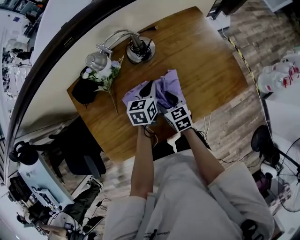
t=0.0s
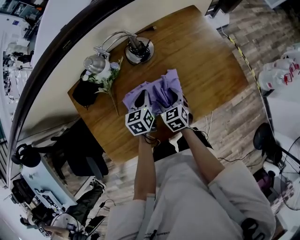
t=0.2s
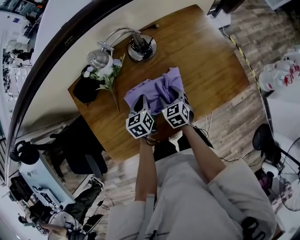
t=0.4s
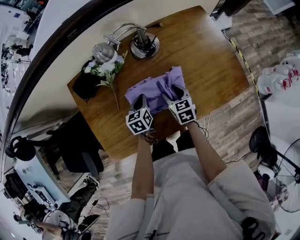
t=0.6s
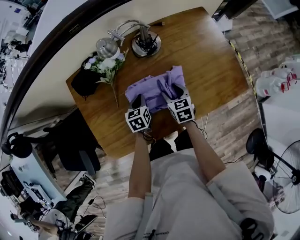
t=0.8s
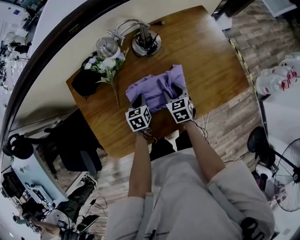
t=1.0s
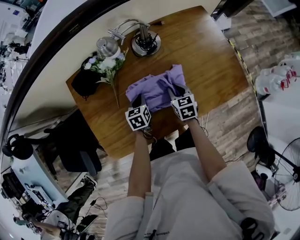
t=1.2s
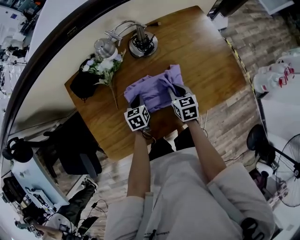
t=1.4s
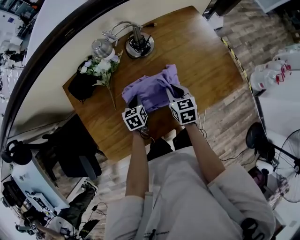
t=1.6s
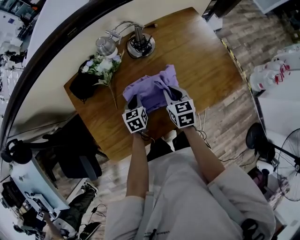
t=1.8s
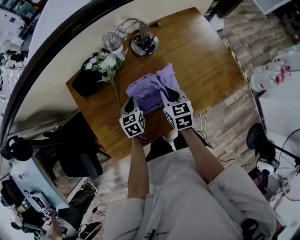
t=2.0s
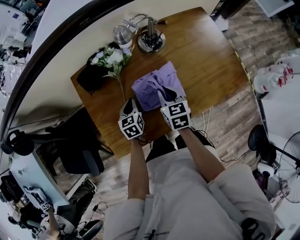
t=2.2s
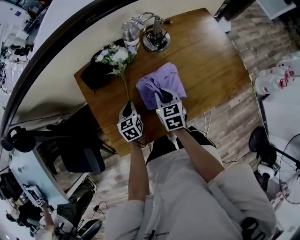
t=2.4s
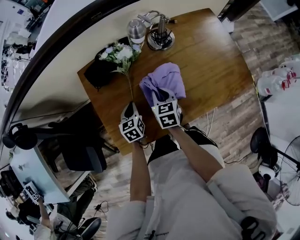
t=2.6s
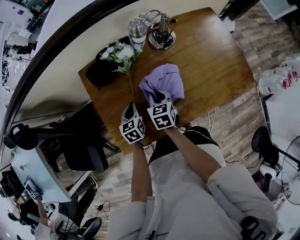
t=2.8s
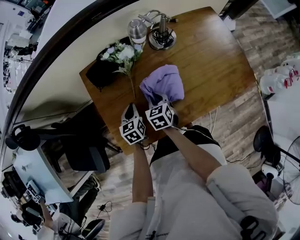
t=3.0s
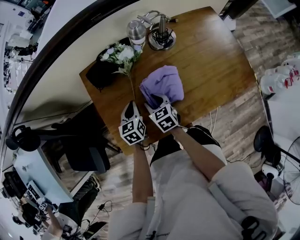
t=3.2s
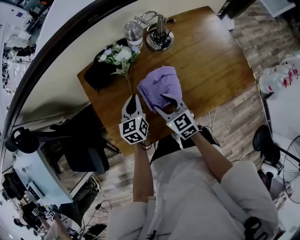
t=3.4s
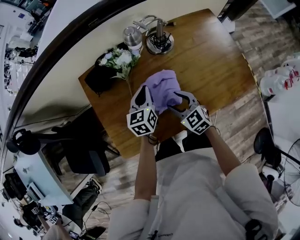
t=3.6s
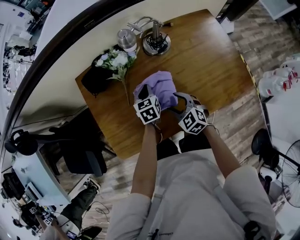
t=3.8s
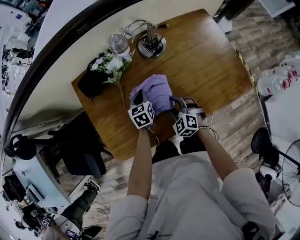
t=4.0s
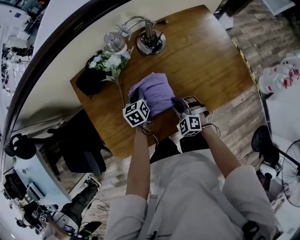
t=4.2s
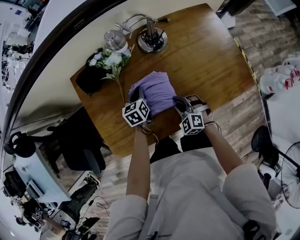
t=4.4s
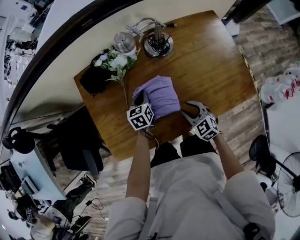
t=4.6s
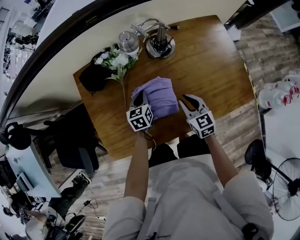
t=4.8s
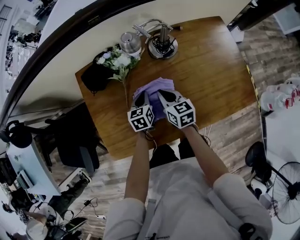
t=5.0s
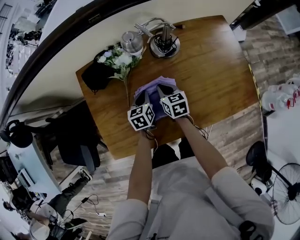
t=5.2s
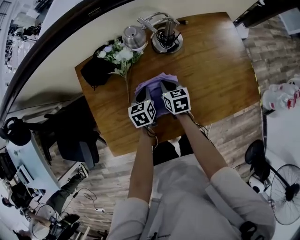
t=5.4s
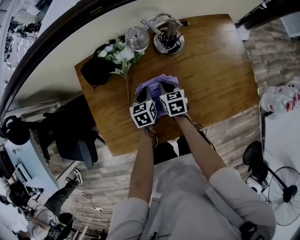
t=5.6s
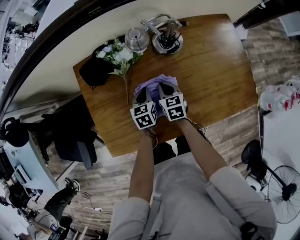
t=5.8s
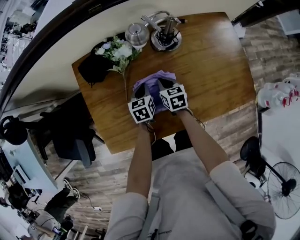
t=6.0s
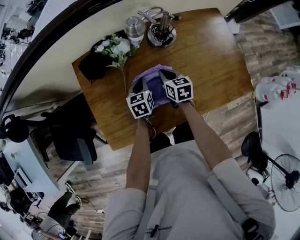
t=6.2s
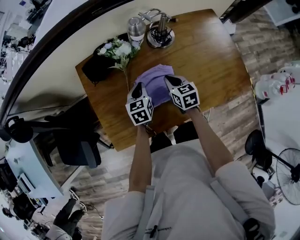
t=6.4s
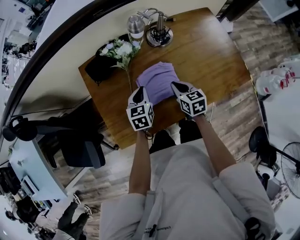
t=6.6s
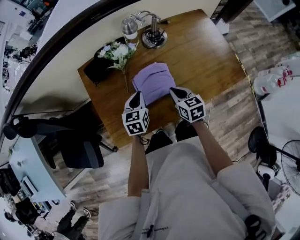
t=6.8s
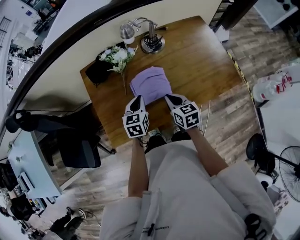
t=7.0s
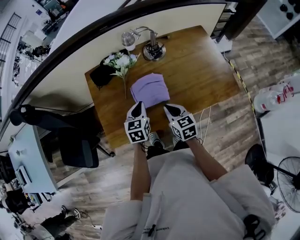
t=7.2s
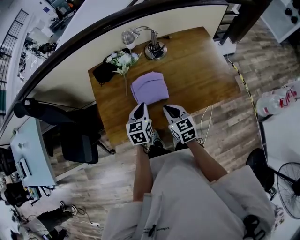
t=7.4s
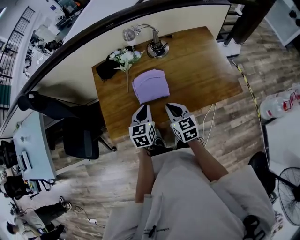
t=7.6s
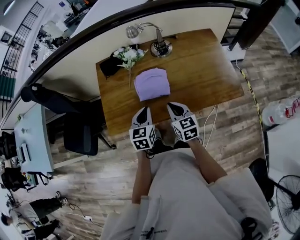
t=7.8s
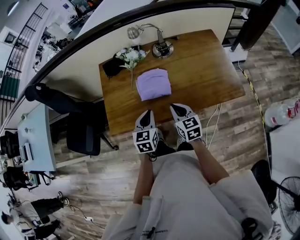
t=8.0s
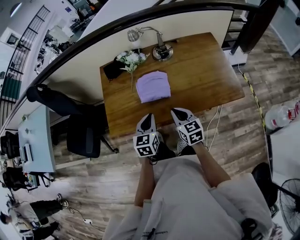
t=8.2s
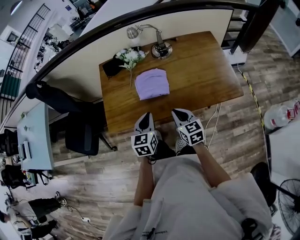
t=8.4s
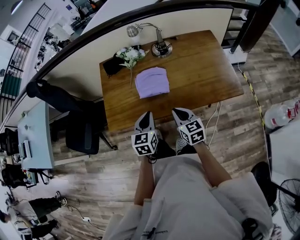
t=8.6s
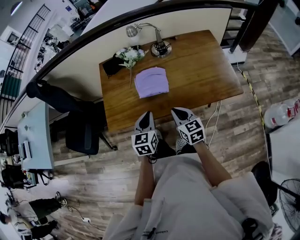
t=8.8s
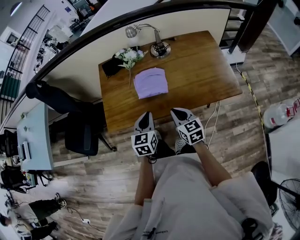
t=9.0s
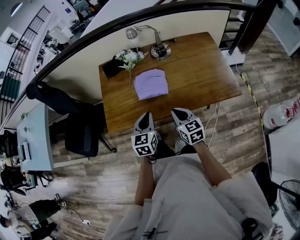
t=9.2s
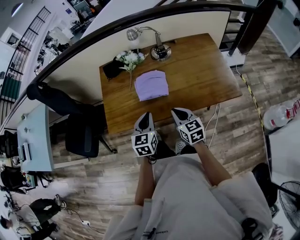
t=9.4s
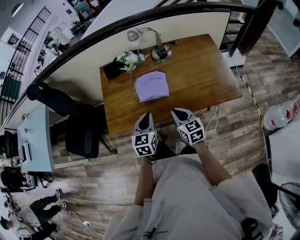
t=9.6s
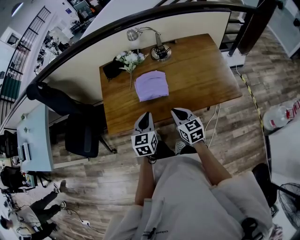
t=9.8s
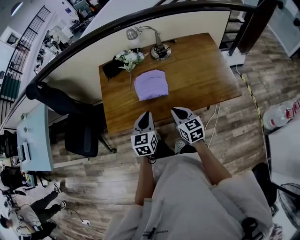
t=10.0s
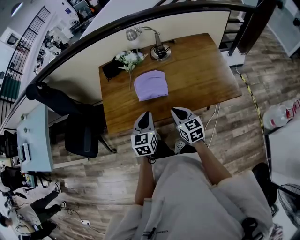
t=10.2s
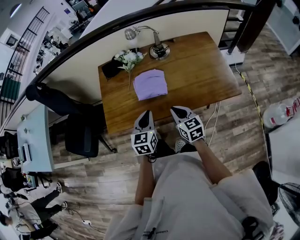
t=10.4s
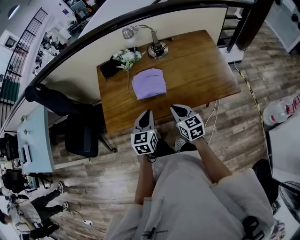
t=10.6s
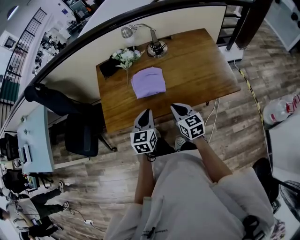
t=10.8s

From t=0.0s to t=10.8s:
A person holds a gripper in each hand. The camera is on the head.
From t=0.0s to t=1.6s: The right gripper closes, while the left gripper shifts roughly 15 cm to the left, downward and backward.
From t=1.6s to t=3.0s: Both grippers move to the left, about 20 cm.
From t=3.0s to t=4.6s: The left gripper heads to the right and forward, covering about 15 cm. The right gripper is displaced to the right and backward by about 20 cm, changes its angle by roughly 30 degrees, and opens, then closes once more.
From t=4.6s to t=6.2s: The right gripper travels forward by about 15 cm, swivels approximately 40 degrees, and closes its fingers.
From t=6.2s to t=7.8s: The two grippers go about 30 cm backward and upward. The right gripper changes its angle by about 20 degrees.
From t=7.8s to t=9.2s: The two grippers go approximately 5 cm backward.
From t=9.2s to t=10.8s: There are only small adjustments of the grippers.

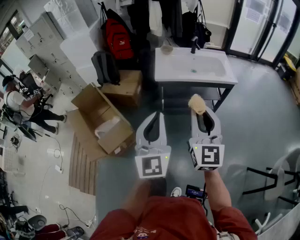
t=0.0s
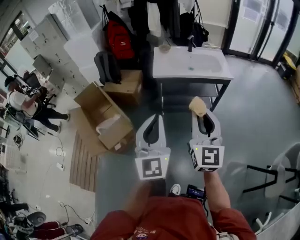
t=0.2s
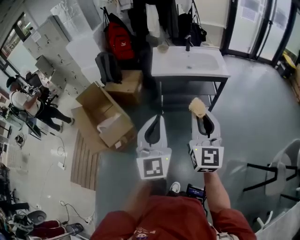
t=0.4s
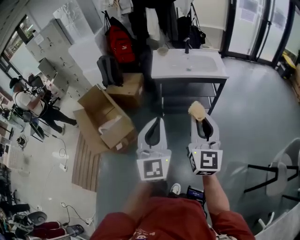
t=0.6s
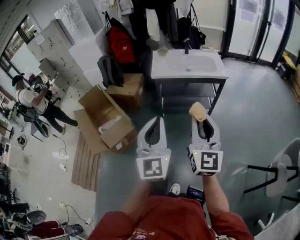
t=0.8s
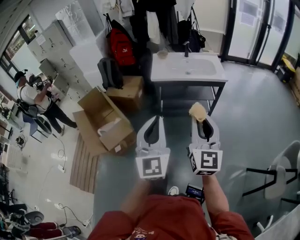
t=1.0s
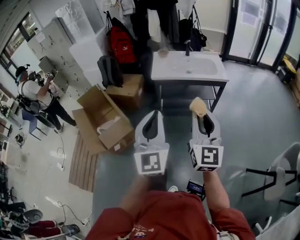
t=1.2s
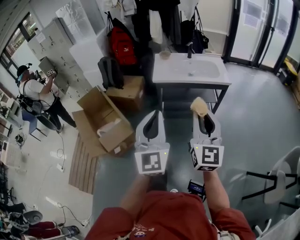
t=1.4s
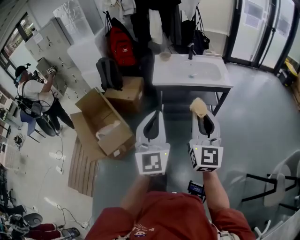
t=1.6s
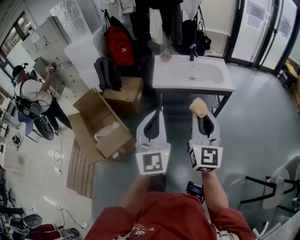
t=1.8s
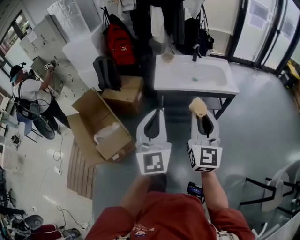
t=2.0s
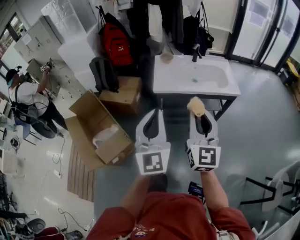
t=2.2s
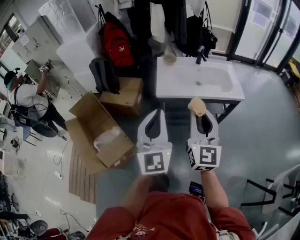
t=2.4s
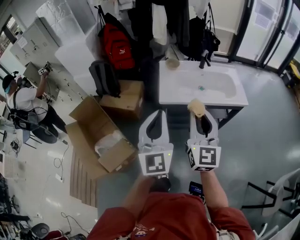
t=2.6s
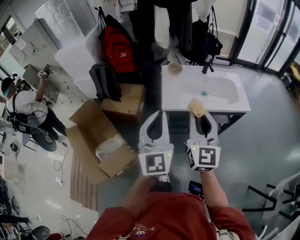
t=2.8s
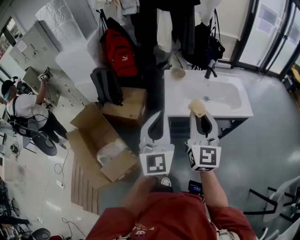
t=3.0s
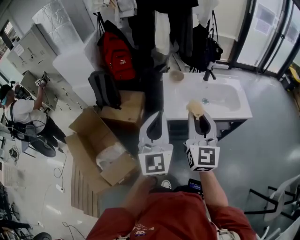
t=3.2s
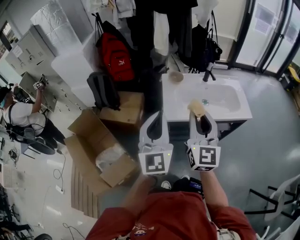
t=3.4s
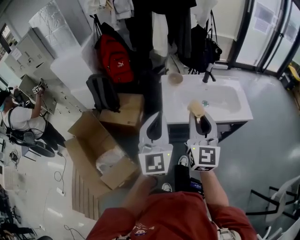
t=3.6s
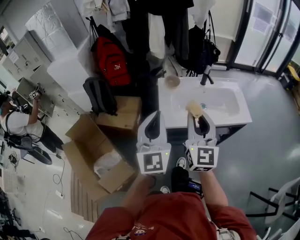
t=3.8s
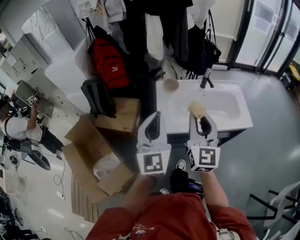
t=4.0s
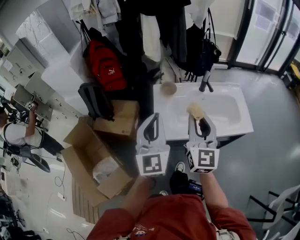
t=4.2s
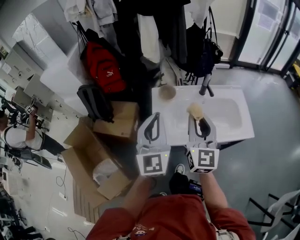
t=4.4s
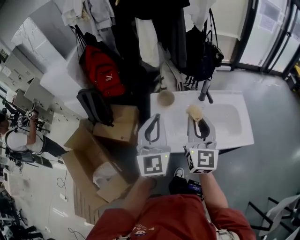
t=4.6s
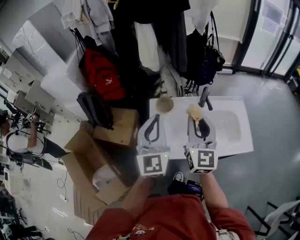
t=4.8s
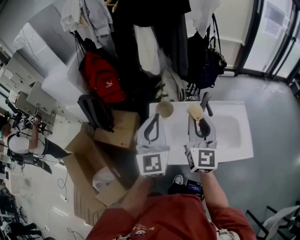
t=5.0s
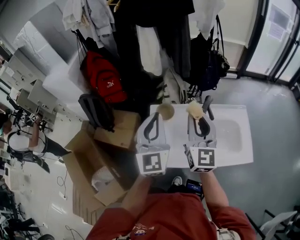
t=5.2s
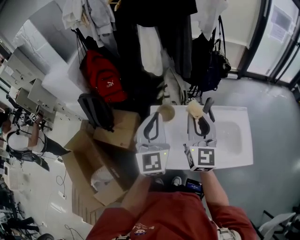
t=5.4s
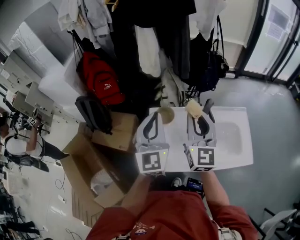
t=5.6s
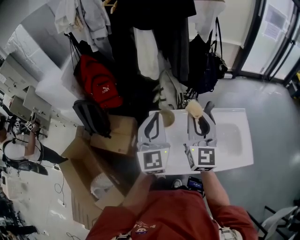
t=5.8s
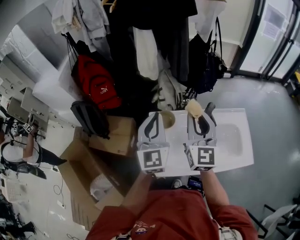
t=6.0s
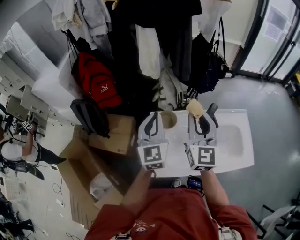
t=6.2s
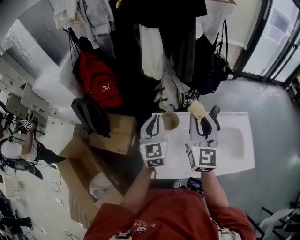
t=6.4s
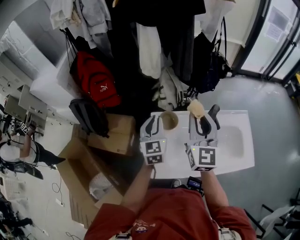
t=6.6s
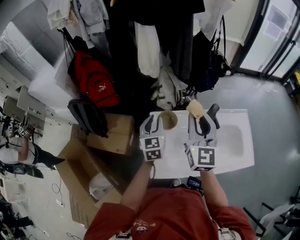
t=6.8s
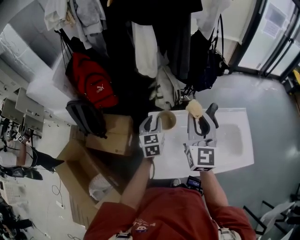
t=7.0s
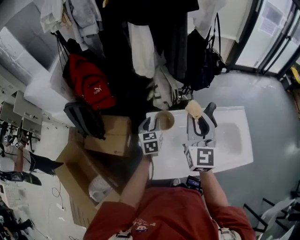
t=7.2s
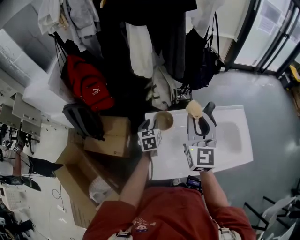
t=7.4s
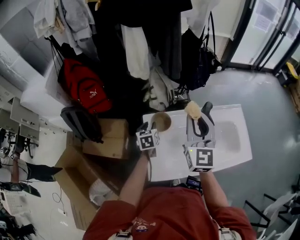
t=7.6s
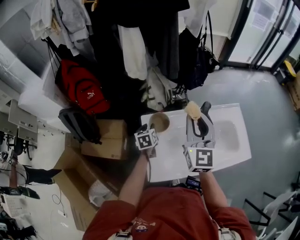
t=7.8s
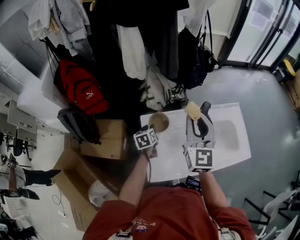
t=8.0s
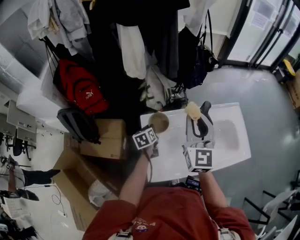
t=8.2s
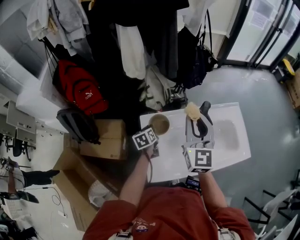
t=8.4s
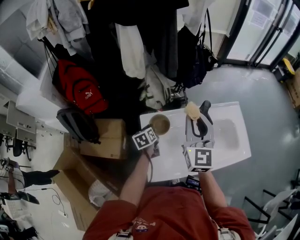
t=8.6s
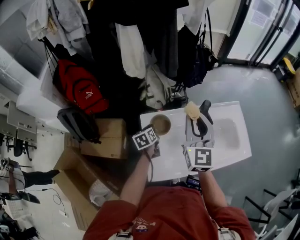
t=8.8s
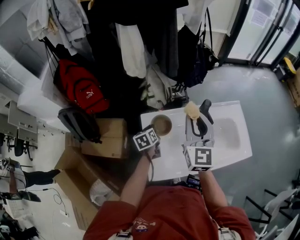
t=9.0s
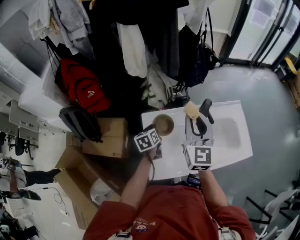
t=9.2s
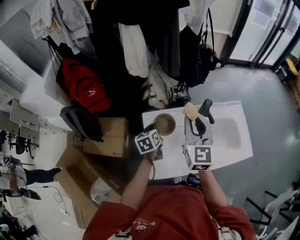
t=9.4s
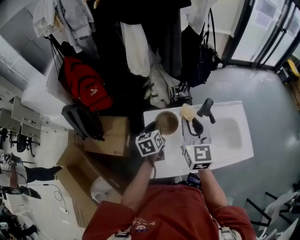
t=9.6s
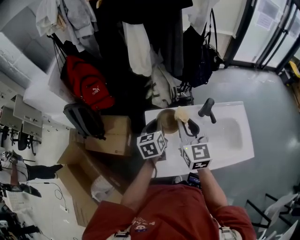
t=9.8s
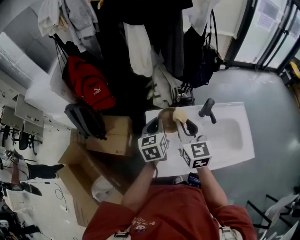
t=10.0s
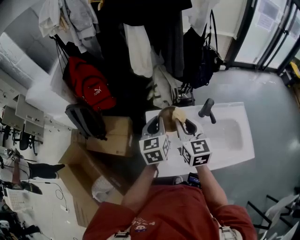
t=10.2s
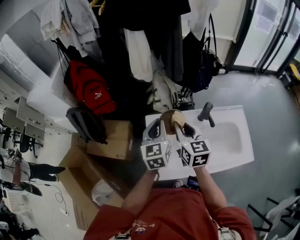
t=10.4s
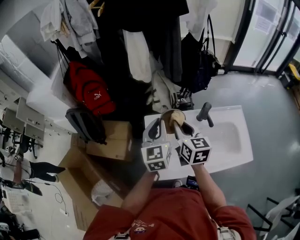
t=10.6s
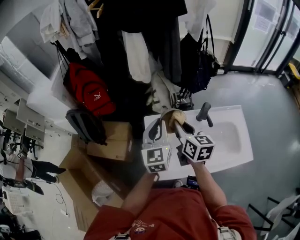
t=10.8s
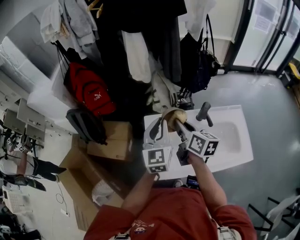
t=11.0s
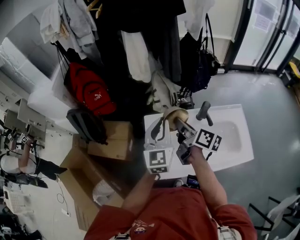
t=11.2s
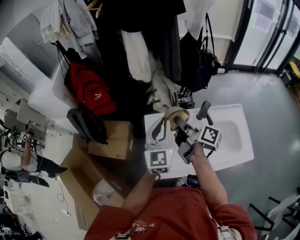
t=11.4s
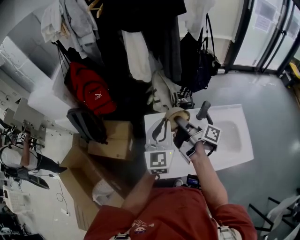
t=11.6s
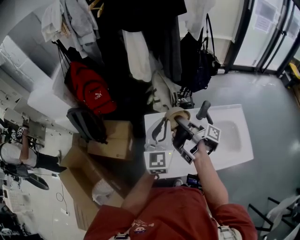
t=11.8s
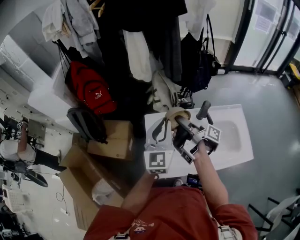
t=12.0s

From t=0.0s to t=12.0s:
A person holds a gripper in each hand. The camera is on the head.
From t=0.0s to t=1.6s: Both grippers move to the right, roughly 5 cm. The right gripper reaches approximately 15 cm backward, then returns, while the left gripper travels backward and back again, approximately 15 cm each way.
From t=1.6s to t=3.0s: Both grippers move forward, some 35 cm.
From t=3.0s to t=4.4s: Both grippers travel together forward, approximately 20 cm.
From t=4.4s to t=6.0s: Both grippers move forward, about 20 cm.
From t=6.0s to t=7.6s: The left gripper shifts about 30 cm downward, tilts its fingers about 40 degrees downward, and opens up.
From t=7.6s to t=9.0s: The left gripper closes its fingers.
From t=9.0s to t=10.4s: The left gripper travels upward by about 20 cm, and swivels some 40 degrees, while the right gripper goes about 5 cm downward, and turns by some 30 degrees.
From t=10.4s to t=12.0s: The right gripper rolls clockwise, seen from behind, by approximately 90 degrees. The left gripper goes roughly 5 cm upward, and swivels approximately 20 degrees.

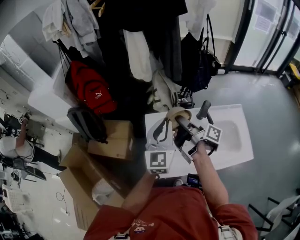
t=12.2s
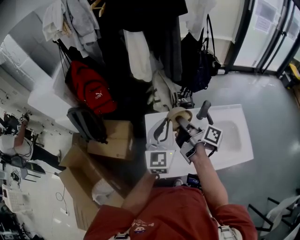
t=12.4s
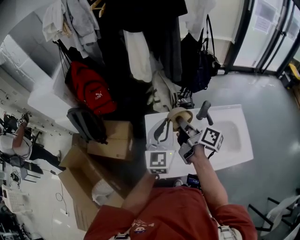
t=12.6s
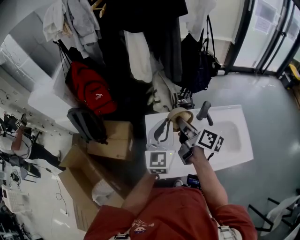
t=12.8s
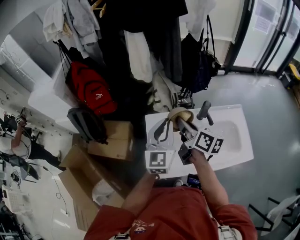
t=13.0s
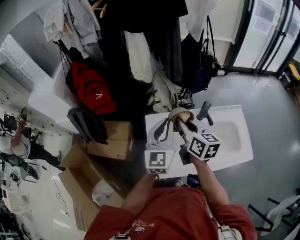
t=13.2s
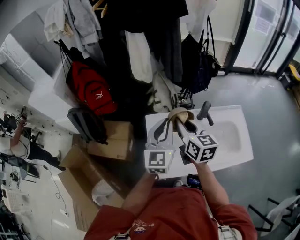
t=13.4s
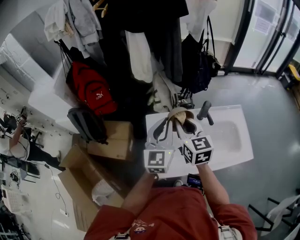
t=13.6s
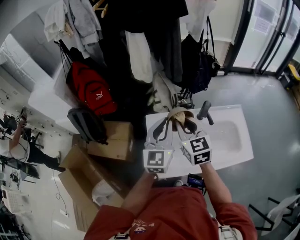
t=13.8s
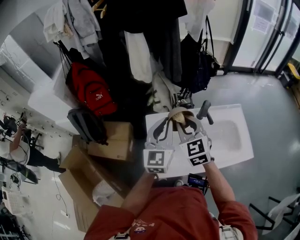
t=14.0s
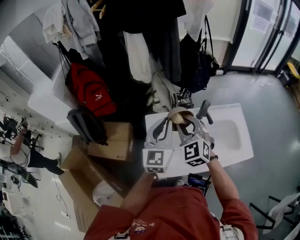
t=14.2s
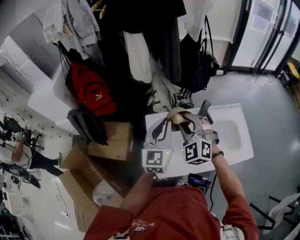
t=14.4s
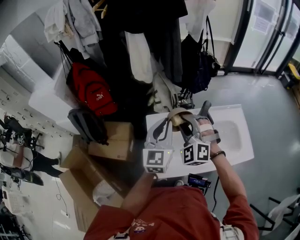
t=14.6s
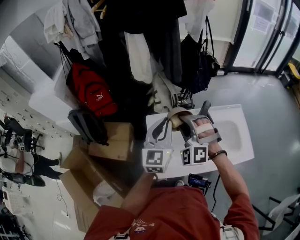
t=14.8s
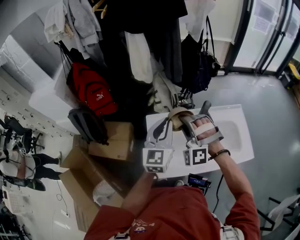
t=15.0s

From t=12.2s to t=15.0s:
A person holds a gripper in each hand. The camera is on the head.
From t=12.2s to t=13.6s: The right gripper twists about 90 degrees counterclockwise, seen from behind.
From t=13.6s to t=15.0s: The right gripper twists about 90 degrees counterclockwise, seen from behind.
